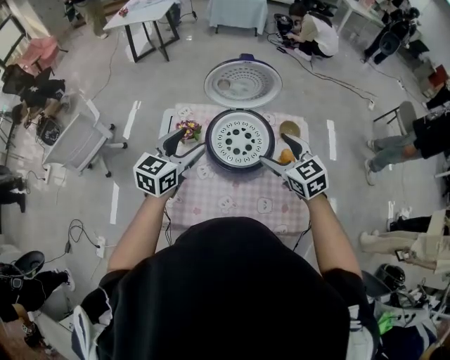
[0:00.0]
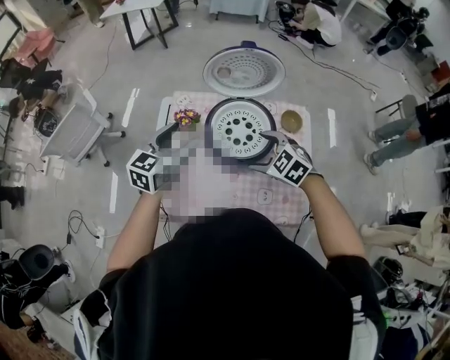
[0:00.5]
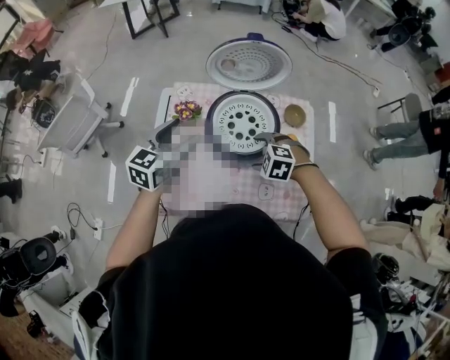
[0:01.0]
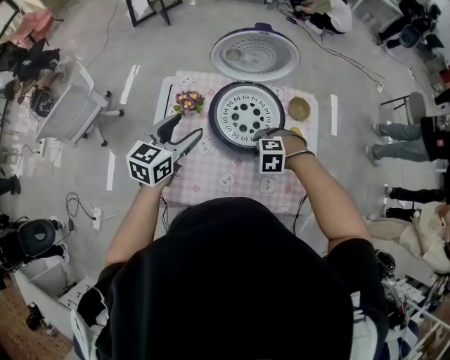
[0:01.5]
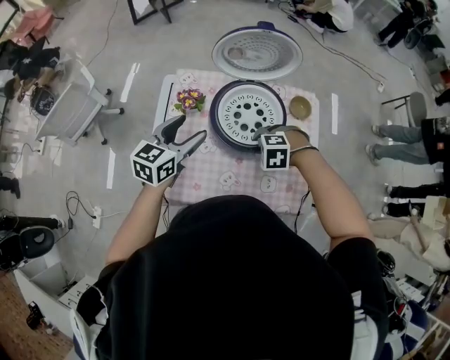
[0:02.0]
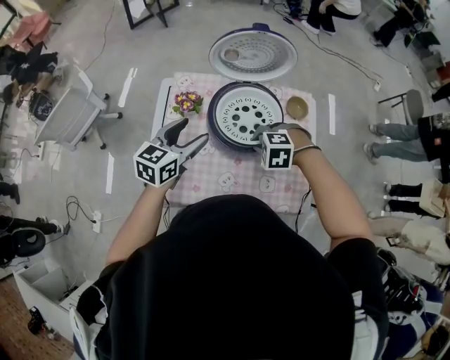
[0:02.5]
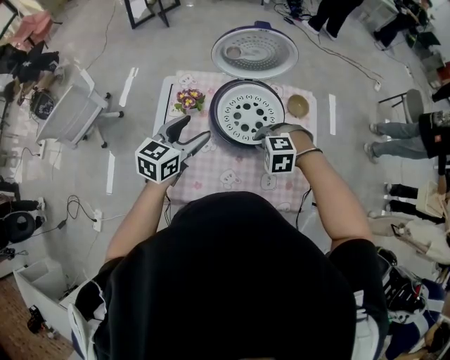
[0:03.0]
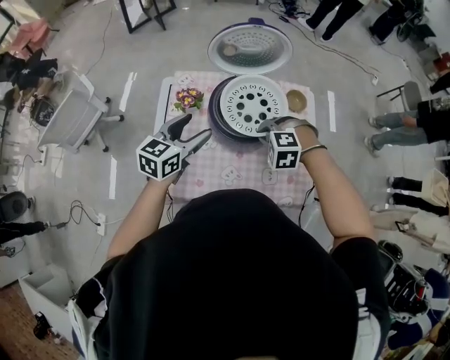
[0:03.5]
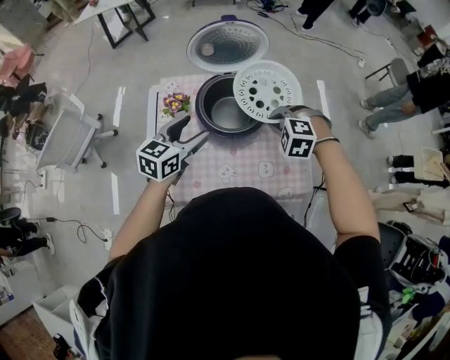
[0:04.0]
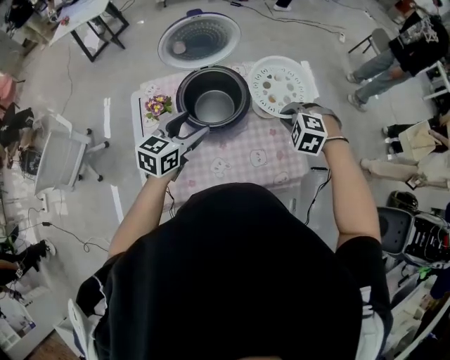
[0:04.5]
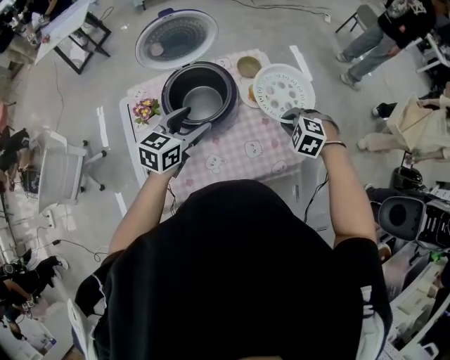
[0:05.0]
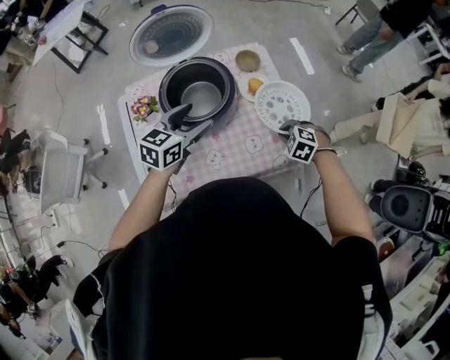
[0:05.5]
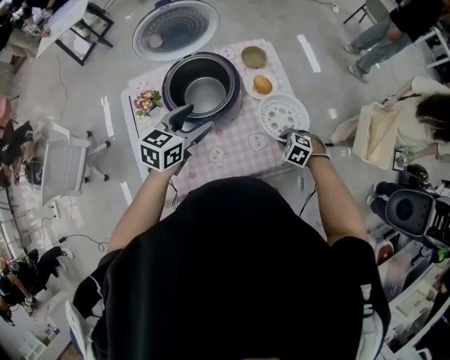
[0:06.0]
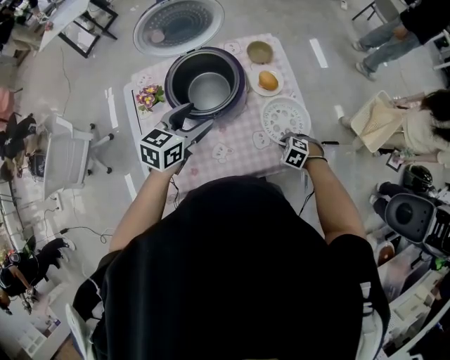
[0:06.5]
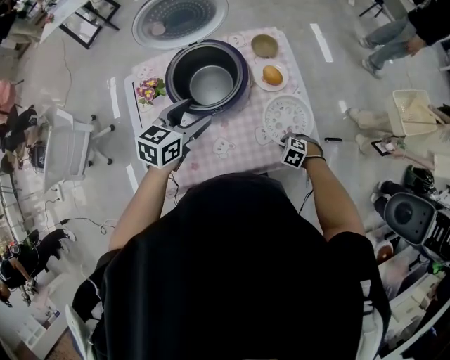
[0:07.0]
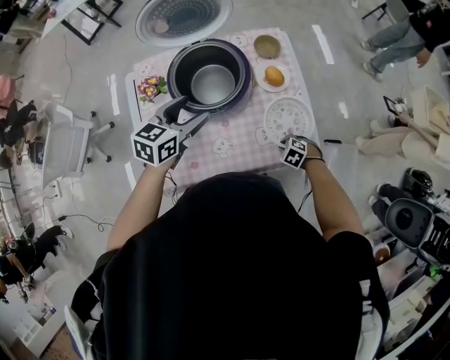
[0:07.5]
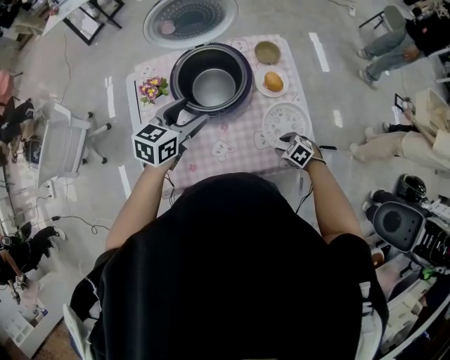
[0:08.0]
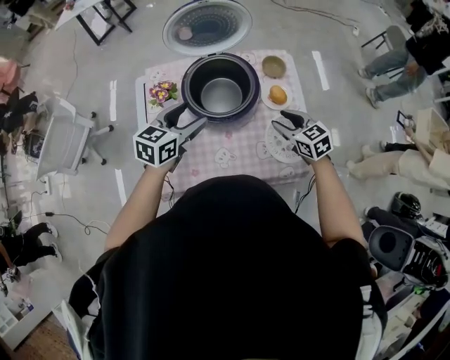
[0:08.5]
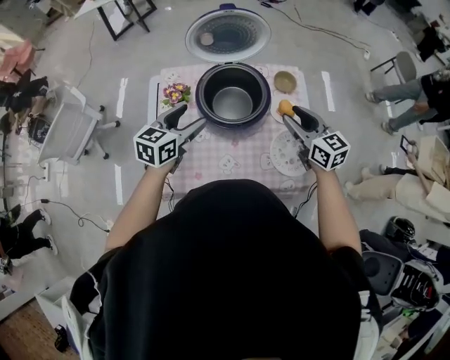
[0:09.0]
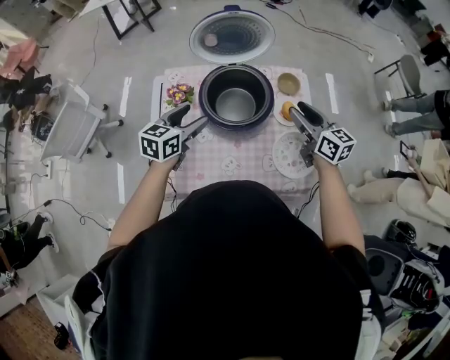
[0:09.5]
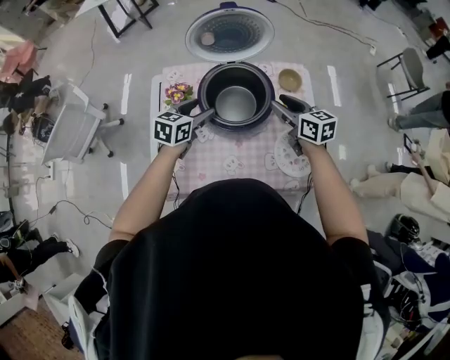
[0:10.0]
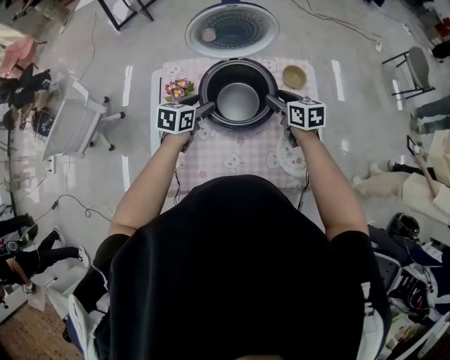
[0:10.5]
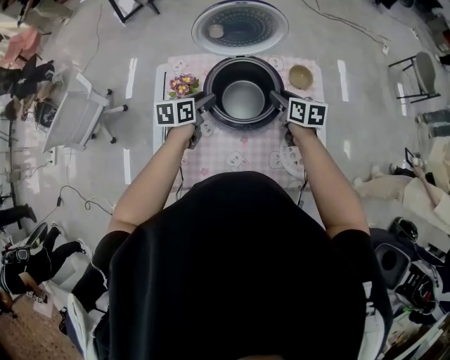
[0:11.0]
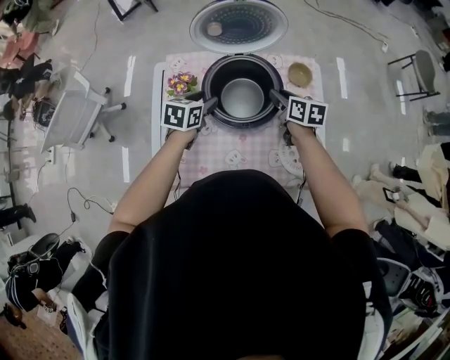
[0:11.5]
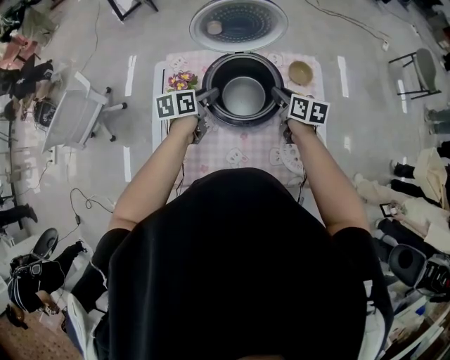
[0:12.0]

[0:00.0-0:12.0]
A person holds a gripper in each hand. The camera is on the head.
0:00.0 to 0:02.0: The right gripper goes some 20 cm downward, tips its fingers downward by approximately 50 degrees, and closes, while the left gripper moves downward, about 5 cm.
0:02.0 to 0:04.0: The left gripper shifts by about 5 cm; the right gripper travels upward by about 10 cm, and turns by approximately 20 degrees.
0:04.0 to 0:06.0: The right gripper heads downward, covering approximately 20 cm, and rotates approximately 40 degrees, while the left gripper shifts by roughly 10 cm.
0:08.0 to 0:10.0: The right gripper shifts about 30 cm upward and forward, and angles its fingers upward, by roughly 50 degrees, while the left gripper travels to the left and forward by about 10 cm.
0:10.0 to 0:12.0: The right gripper goes roughly 5 cm downward; the left gripper moves some 5 cm, and rotates about 30 degrees.

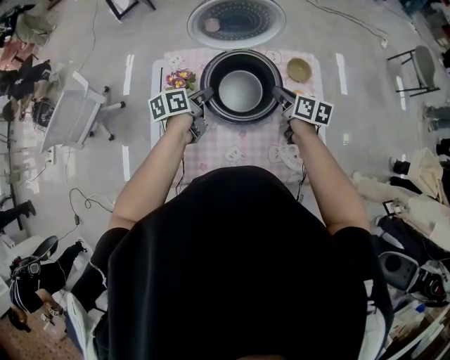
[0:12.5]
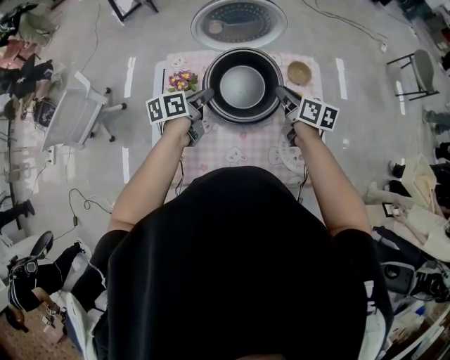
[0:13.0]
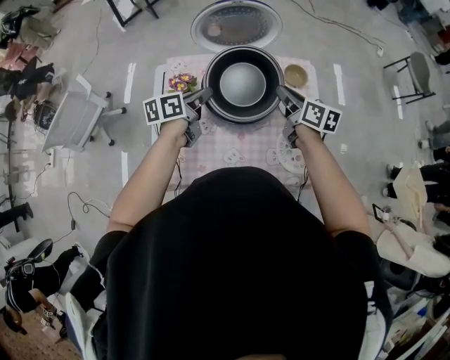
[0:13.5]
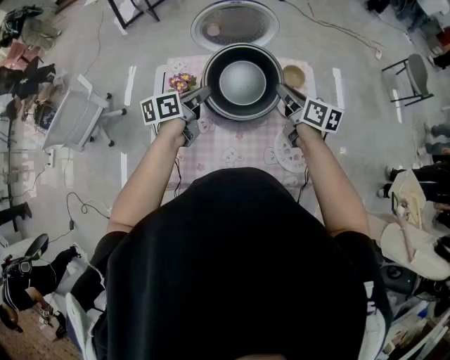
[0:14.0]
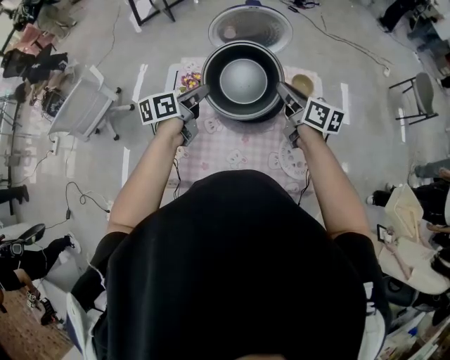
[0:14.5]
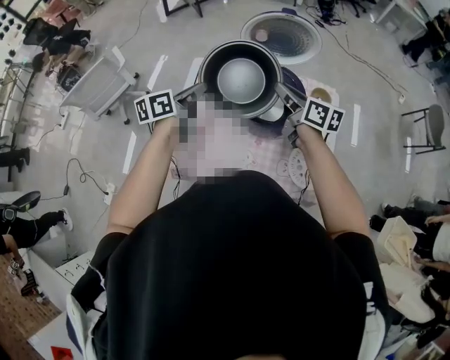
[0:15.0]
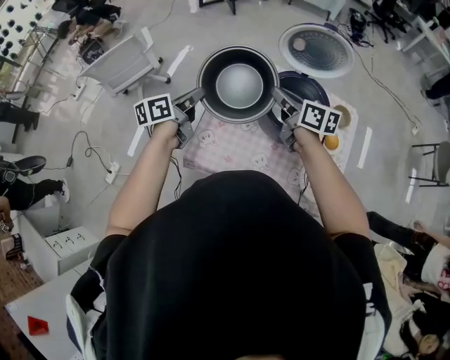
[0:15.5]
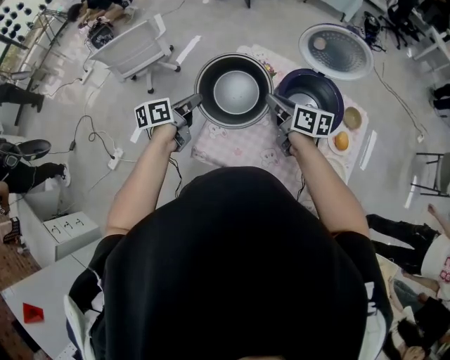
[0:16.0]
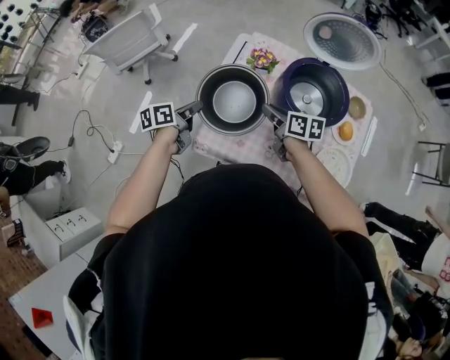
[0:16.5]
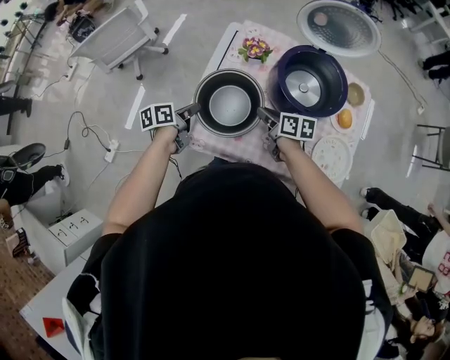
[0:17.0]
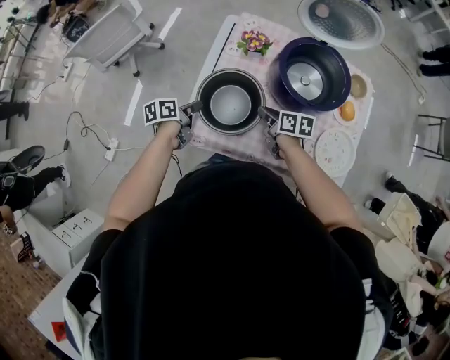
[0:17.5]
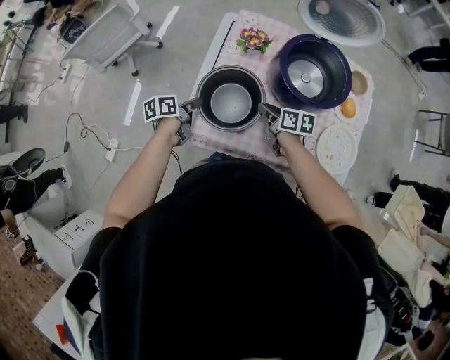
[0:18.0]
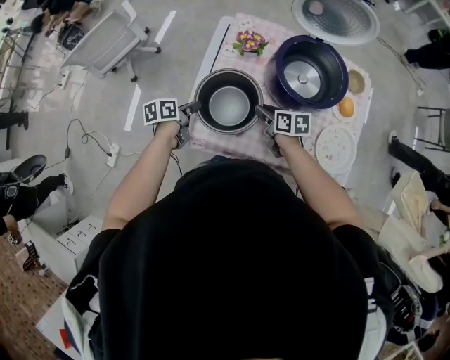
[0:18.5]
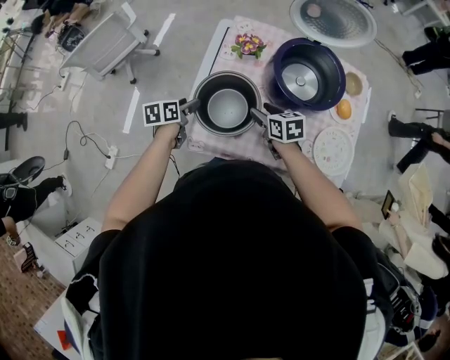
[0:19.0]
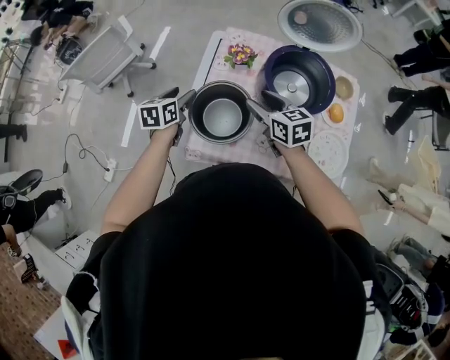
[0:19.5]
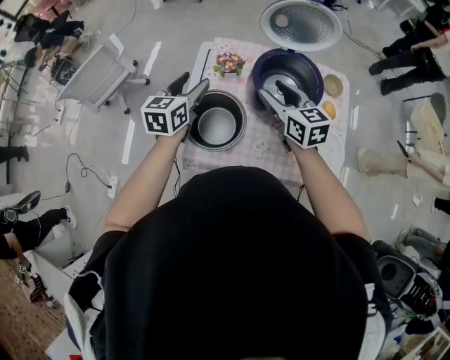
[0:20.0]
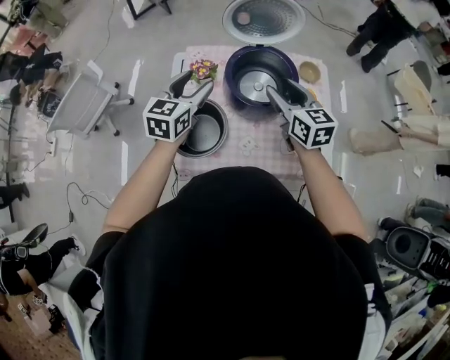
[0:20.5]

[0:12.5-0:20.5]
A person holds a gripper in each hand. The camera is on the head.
0:12.5 to 0:14.5: The grippers both shift upward by approximately 10 cm.
0:14.5 to 0:16.5: The grippers both shift to the left and downward by roughly 30 cm. The right gripper changes its angle by some 30 degrees. Meanwhile the left gripper rotates some 30 degrees.
0:16.5 to 0:18.5: The grippers both shift downward by roughly 10 cm.
0:18.5 to 0:20.5: Both grippers travel together upward and to the right, approximately 30 cm. The left gripper rolls clockwise, seen from behind, by approximately 60 degrees, and opens; the right gripper rotates about 40 degrees.

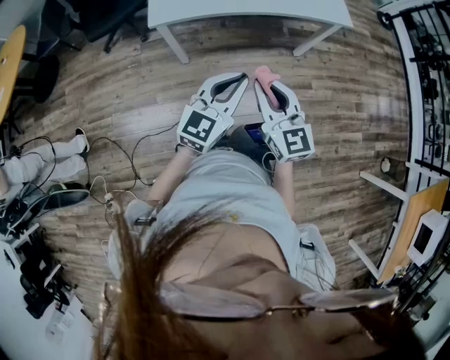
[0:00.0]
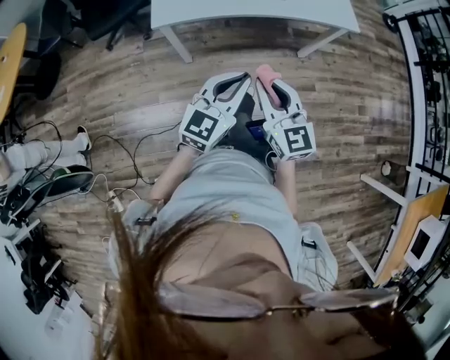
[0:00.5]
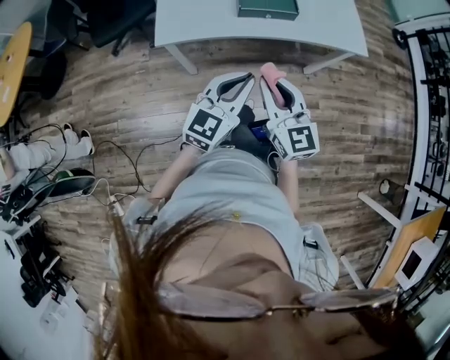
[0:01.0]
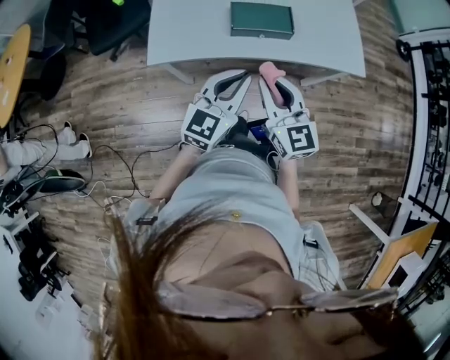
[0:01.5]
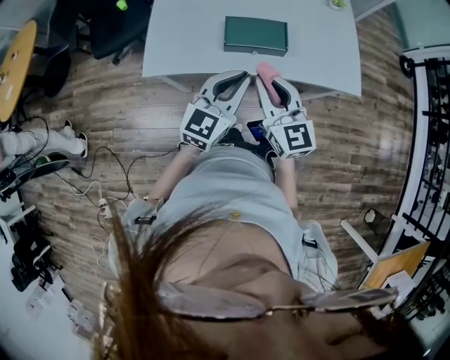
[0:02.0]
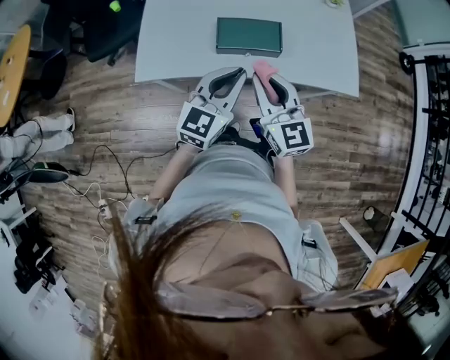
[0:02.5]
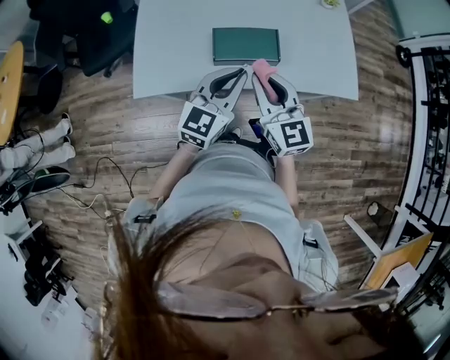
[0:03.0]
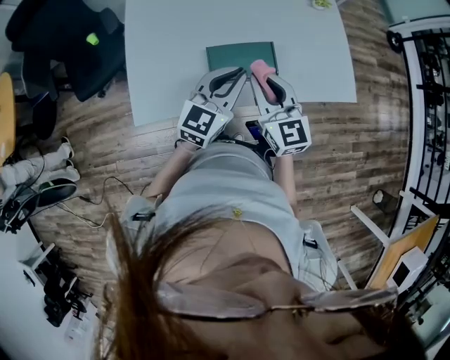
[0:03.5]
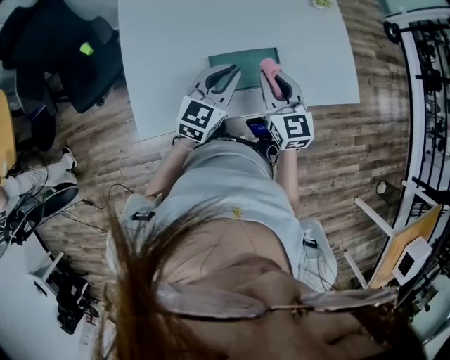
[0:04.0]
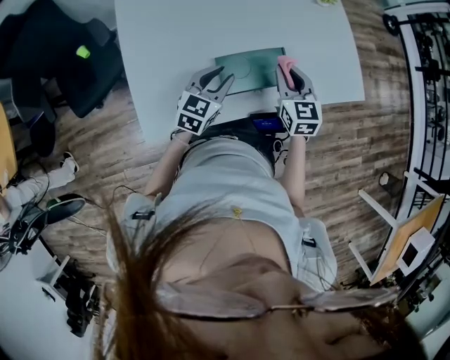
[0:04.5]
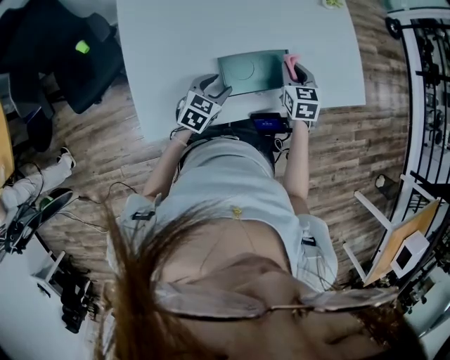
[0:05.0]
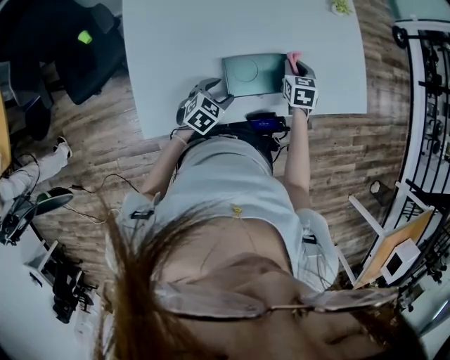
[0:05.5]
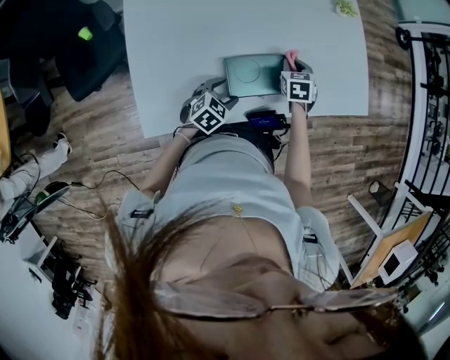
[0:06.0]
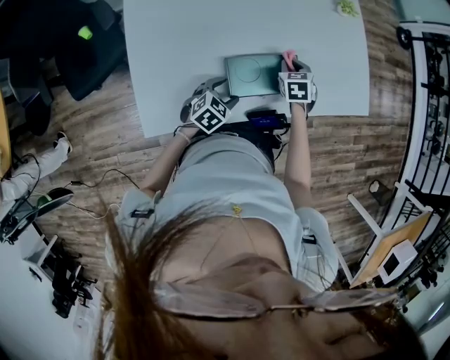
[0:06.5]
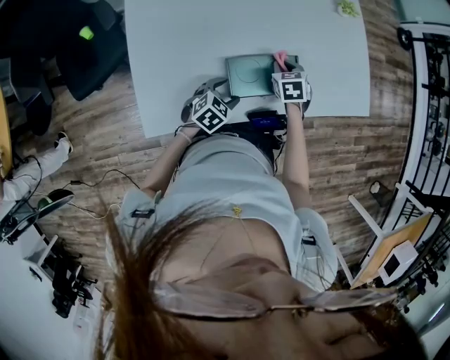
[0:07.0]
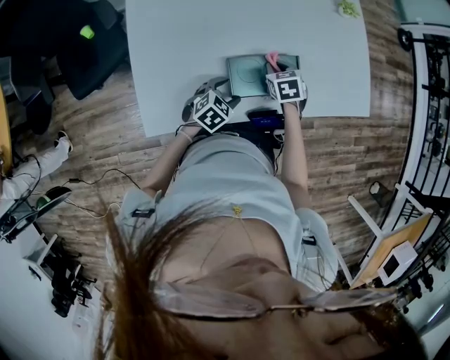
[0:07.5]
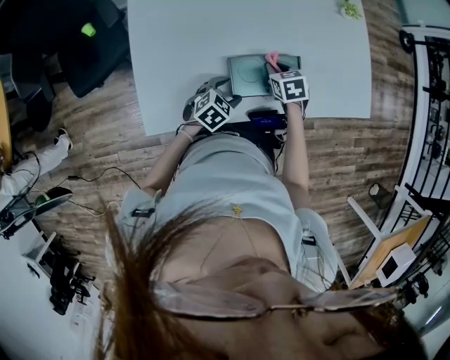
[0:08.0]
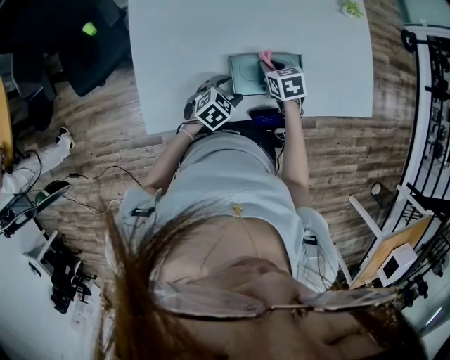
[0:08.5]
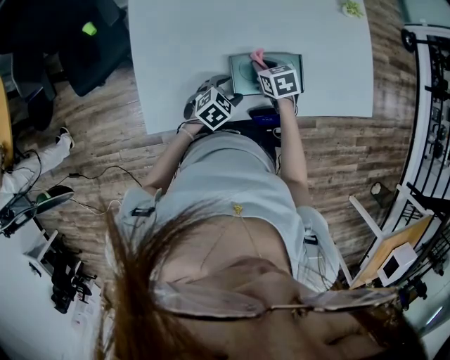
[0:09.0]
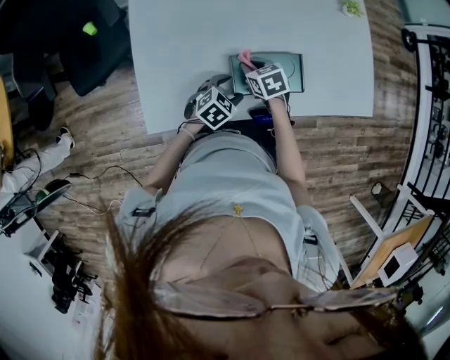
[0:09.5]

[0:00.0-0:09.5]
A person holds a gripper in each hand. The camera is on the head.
0:00.0 to 0:02.0: Both grippers move forward, approximately 30 cm.
0:02.0 to 0:04.0: The two grippers go about 20 cm forward.
0:04.0 to 0:05.5: The left gripper travels downward by about 20 cm, tips its fingers downward by roughly 30 degrees, and opens its fingers. The right gripper moves downward and forward, about 20 cm, and points its fingers some 30 degrees further downward.
0:05.5 to 0:07.5: The right gripper goes some 5 cm to the left.
0:07.5 to 0:09.5: The right gripper is displaced to the left by roughly 10 cm.
